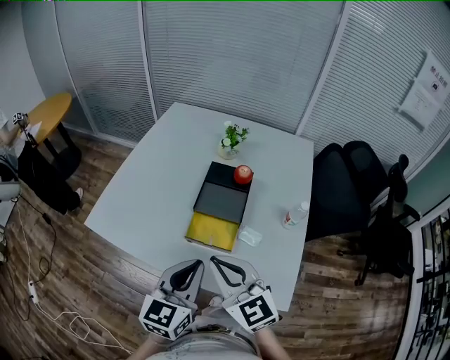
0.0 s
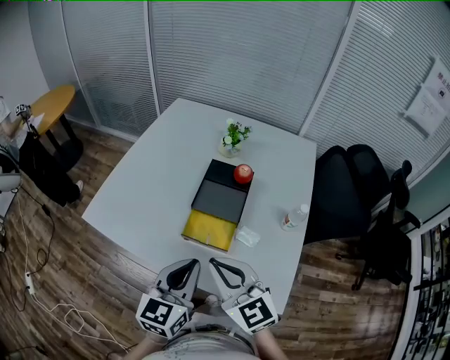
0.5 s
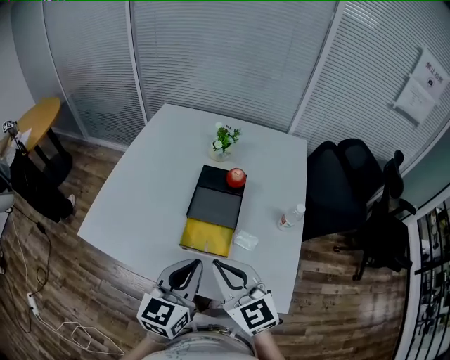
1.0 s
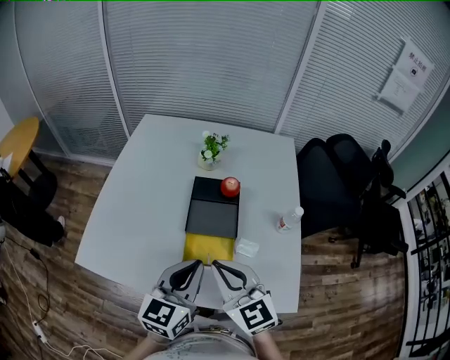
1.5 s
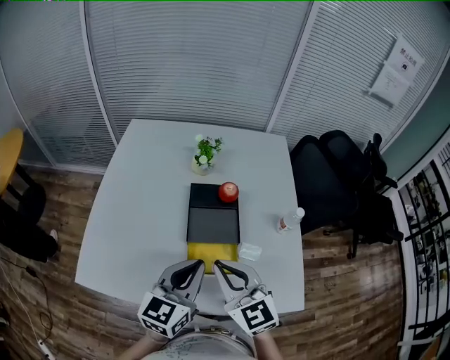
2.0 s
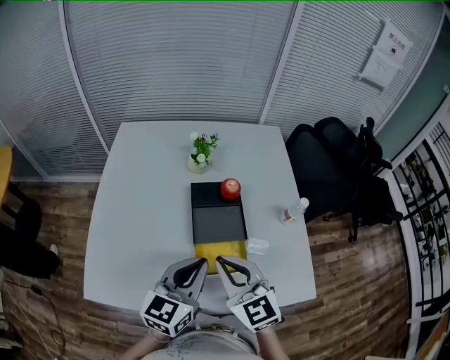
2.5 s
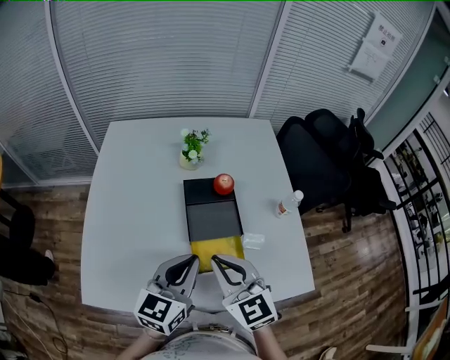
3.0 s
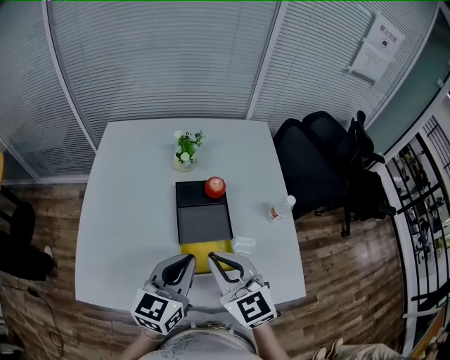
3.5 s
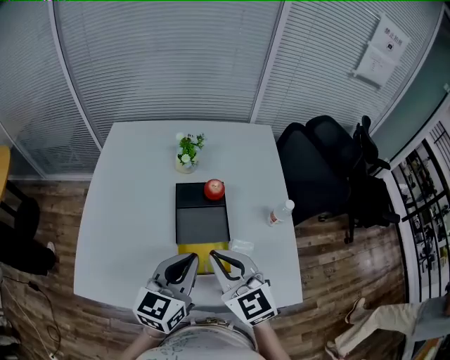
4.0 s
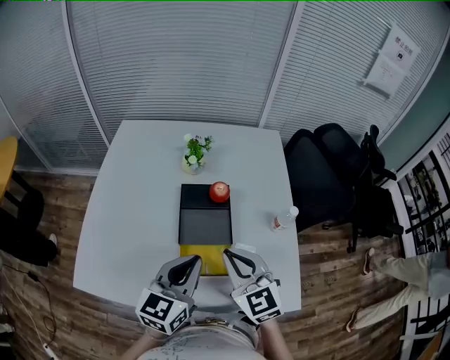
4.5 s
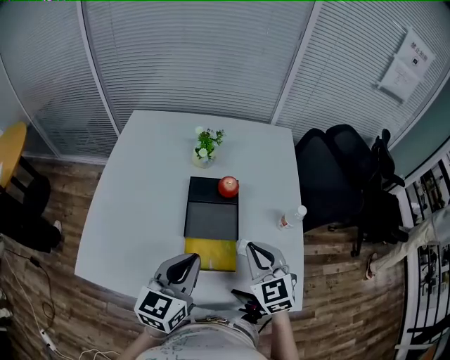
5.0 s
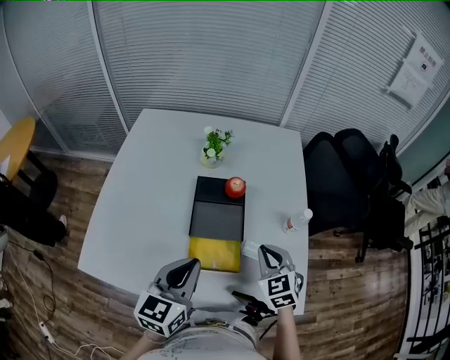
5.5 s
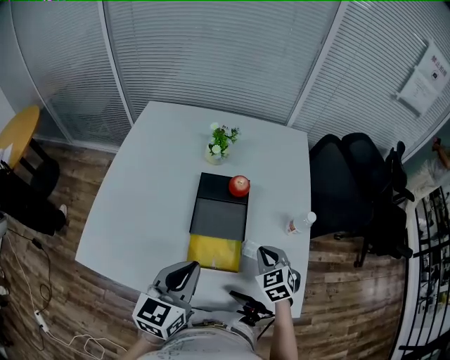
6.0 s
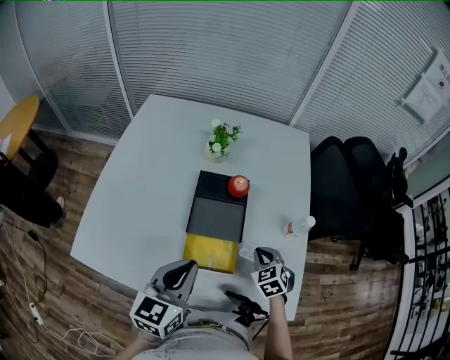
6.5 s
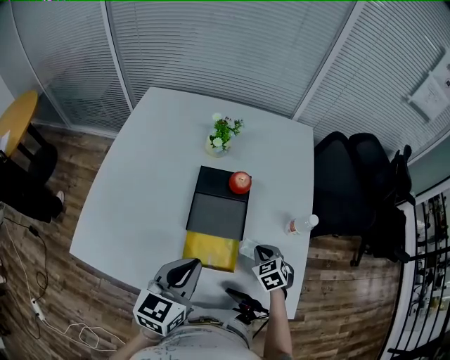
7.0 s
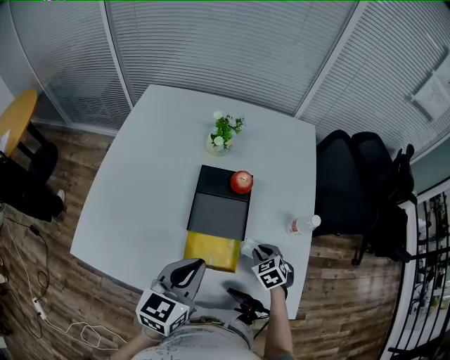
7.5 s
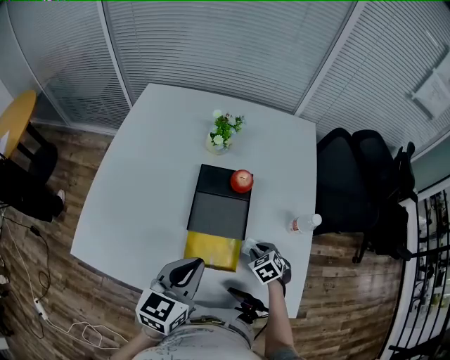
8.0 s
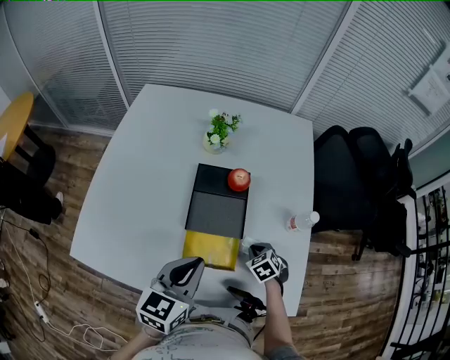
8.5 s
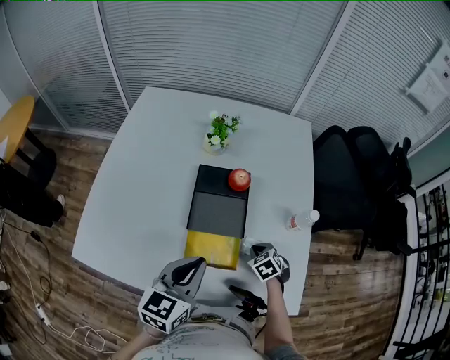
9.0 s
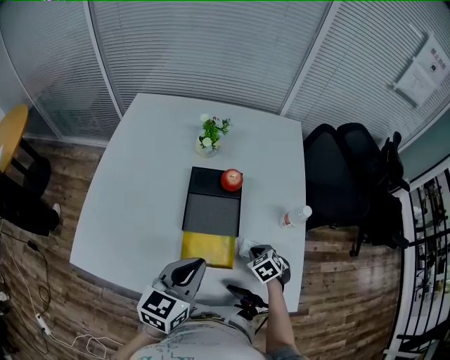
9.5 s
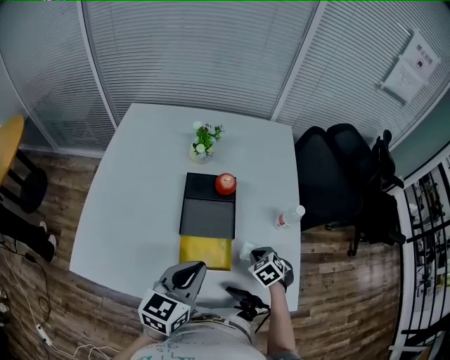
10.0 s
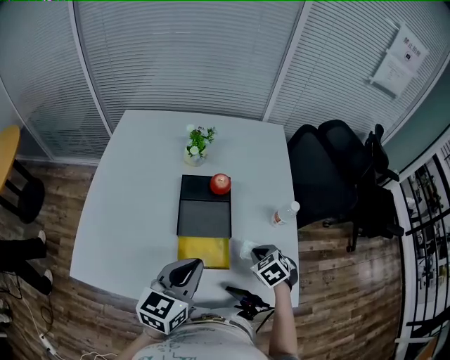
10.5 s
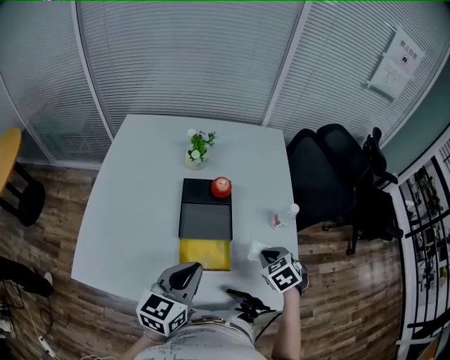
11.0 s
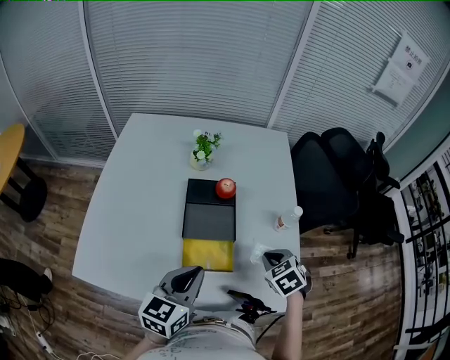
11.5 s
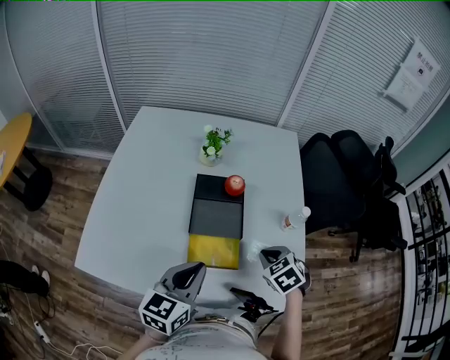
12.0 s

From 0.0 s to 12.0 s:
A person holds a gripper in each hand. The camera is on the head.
From 0.0 s to 2.0 s: Both grippers move forward, roughly 15 cm.
From 2.0 s to 4.0 s: There are only small adjustments of the grippers.
From 4.0 s to 6.0 s: The right gripper heads downward and to the right, covering approximately 20 cm, and changes its angle by about 30 degrees.
From 6.0 s to 8.0 s: The left gripper changes place by roughly 5 cm, while the right gripper moves downward, approximately 15 cm, turns by roughly 20 degrees, and opens up.
From 8.0 s to 10.0 s: The right gripper goes some 5 cm upward, and closes up.
From 10.0 s to 12.0 s: The right gripper heads upward, covering about 10 cm.

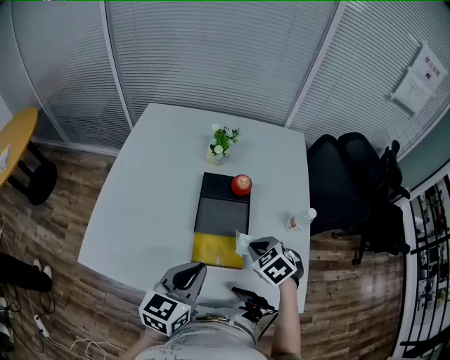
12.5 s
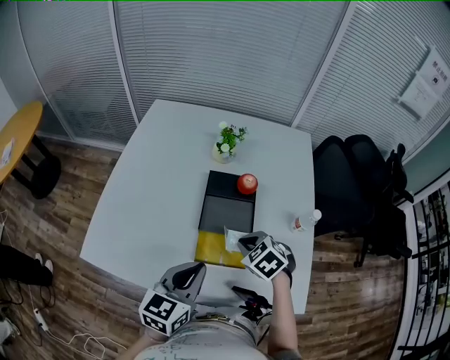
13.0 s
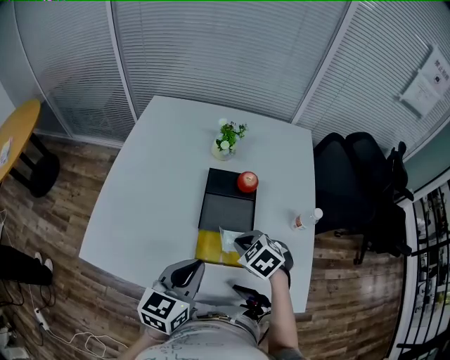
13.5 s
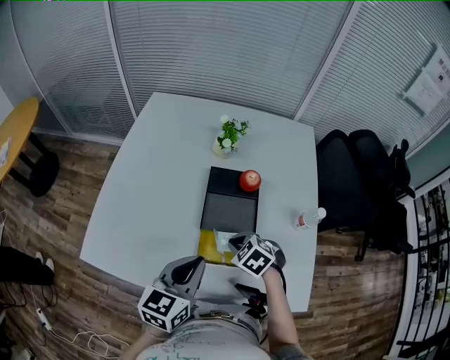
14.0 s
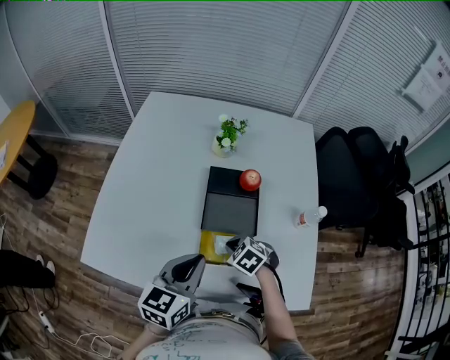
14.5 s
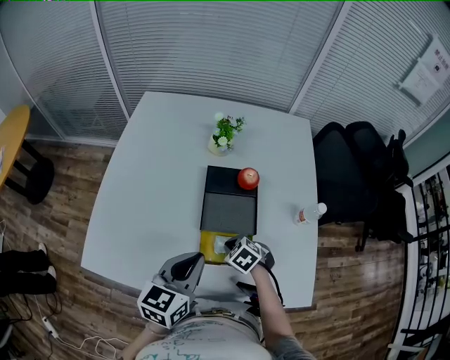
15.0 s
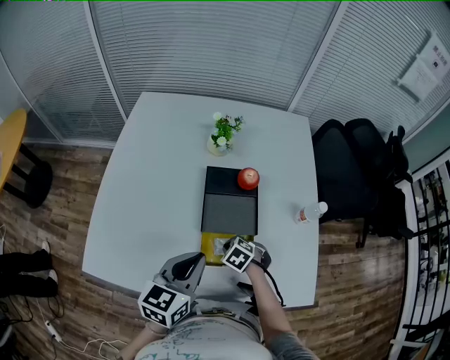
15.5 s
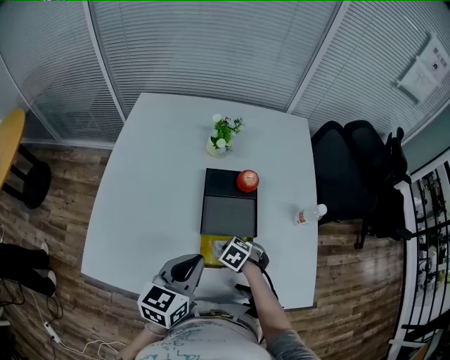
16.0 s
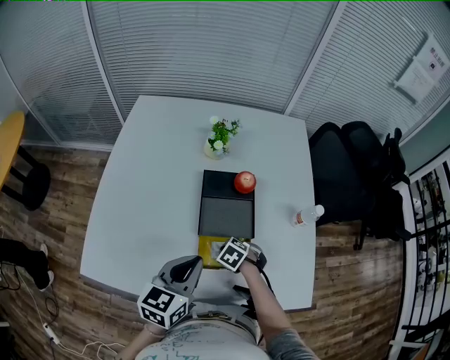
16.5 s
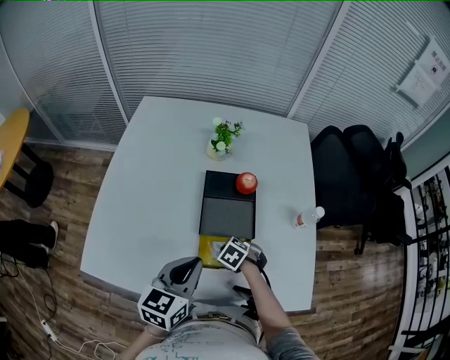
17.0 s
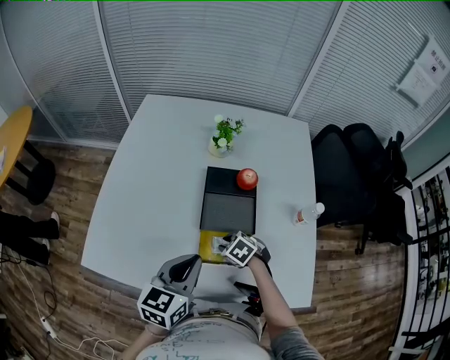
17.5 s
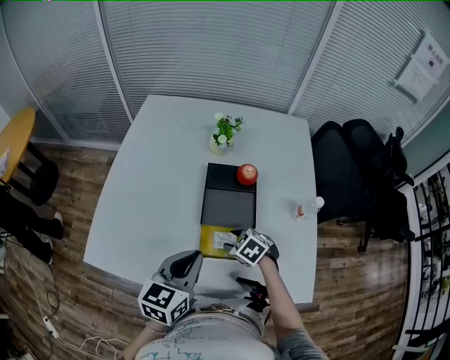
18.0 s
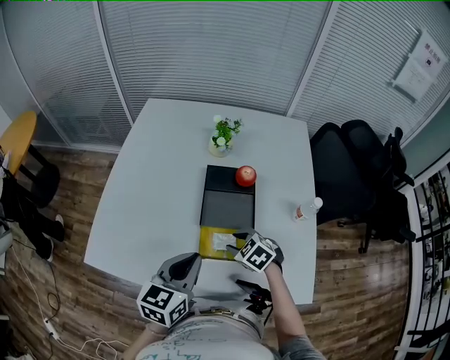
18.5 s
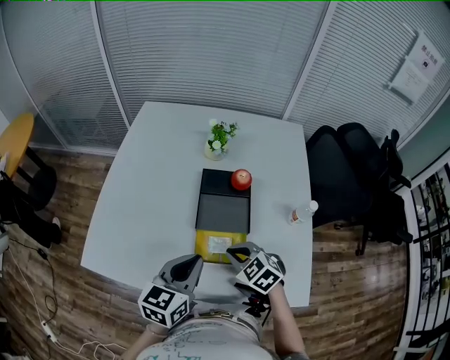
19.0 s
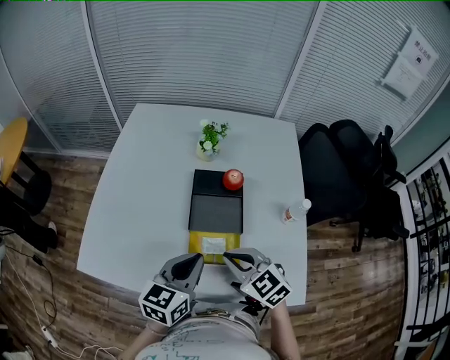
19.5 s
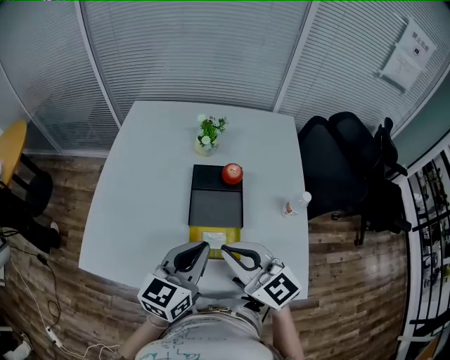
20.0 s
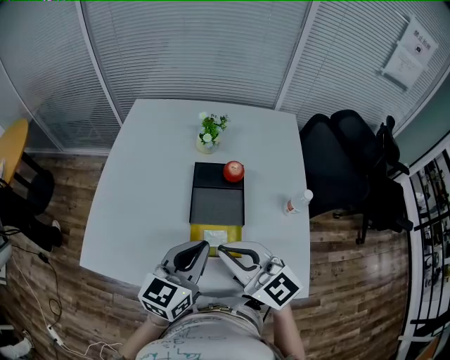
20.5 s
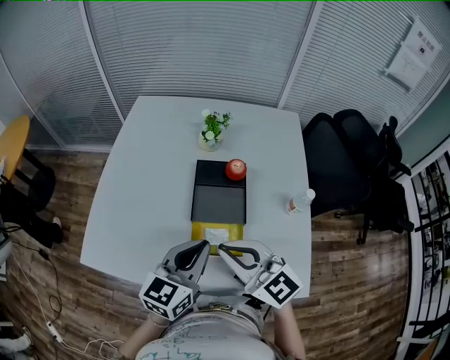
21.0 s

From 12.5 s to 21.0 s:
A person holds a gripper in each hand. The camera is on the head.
From 12.5 s to 14.5 s: The right gripper is displaced downward and to the left by some 15 cm. Meanwhile the left gripper ends up approximately 5 cm from where it was.
From 14.5 s to 16.5 s: The right gripper moves downward, about 5 cm.
From 16.5 s to 19.0 s: The right gripper moves upward, roughly 15 cm, turns by approximately 30 degrees, and opens and closes again.
From 19.0 s to 21.0 s: The right gripper moves upward, some 15 cm, and angles its fingers upward, by some 40 degrees, while the left gripper changes place by about 5 cm.

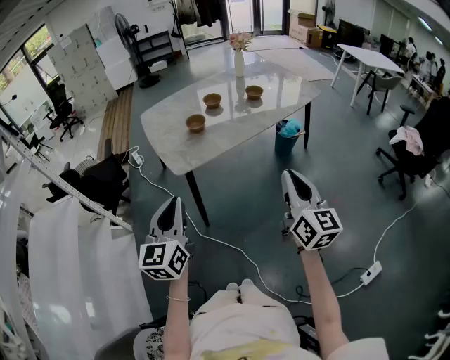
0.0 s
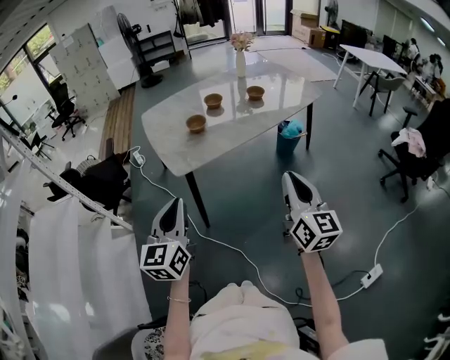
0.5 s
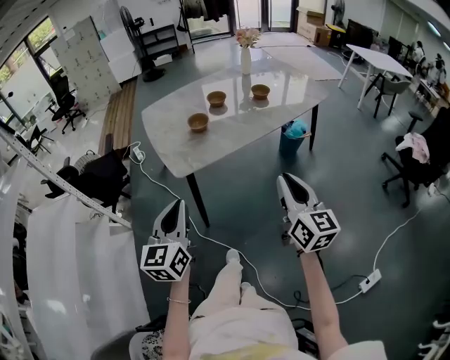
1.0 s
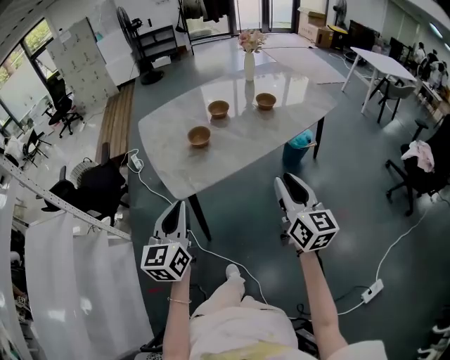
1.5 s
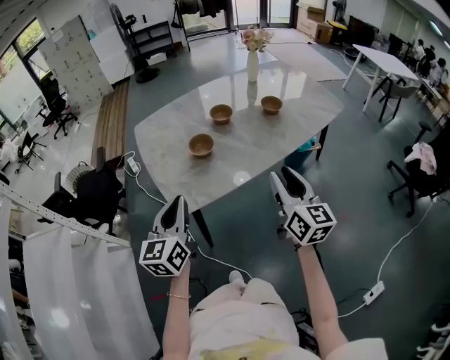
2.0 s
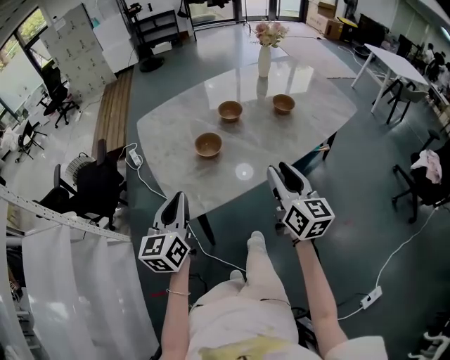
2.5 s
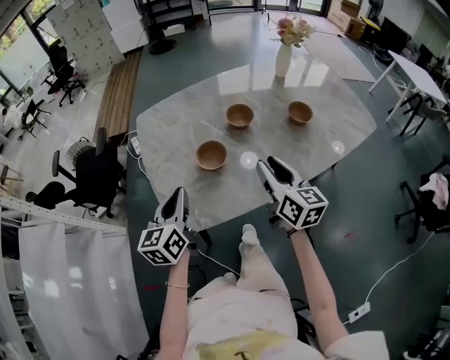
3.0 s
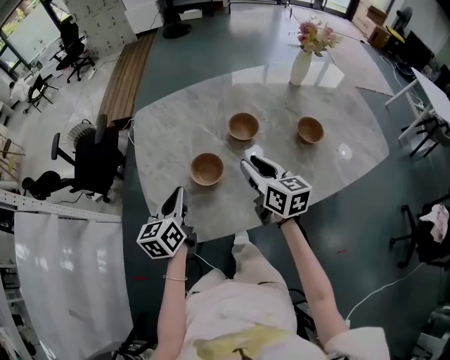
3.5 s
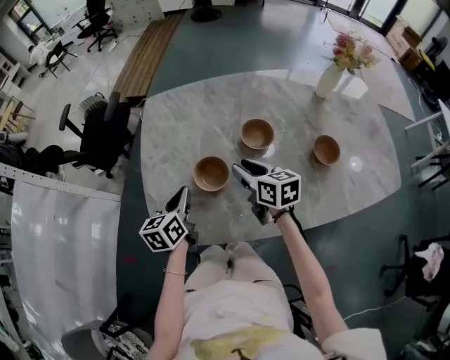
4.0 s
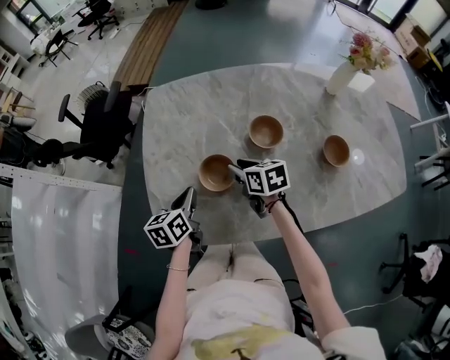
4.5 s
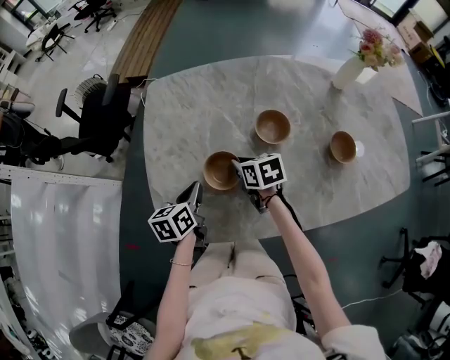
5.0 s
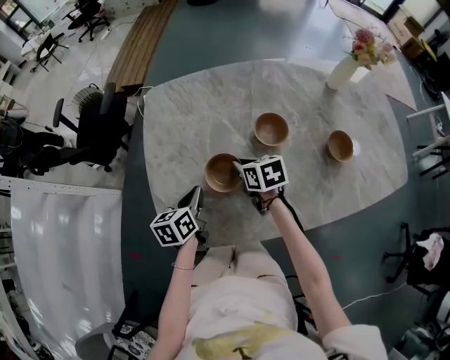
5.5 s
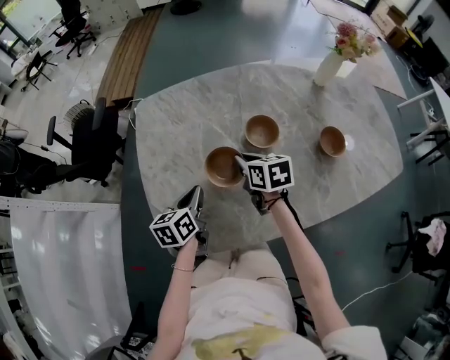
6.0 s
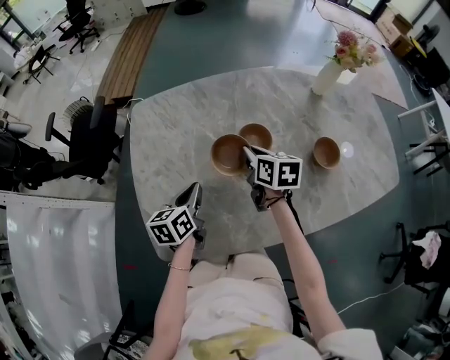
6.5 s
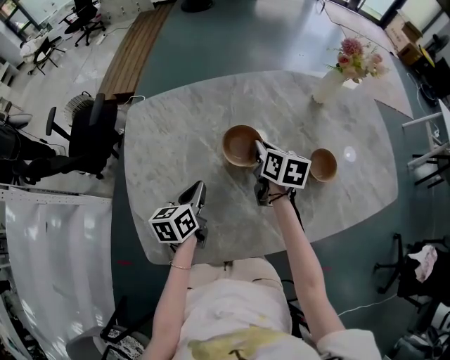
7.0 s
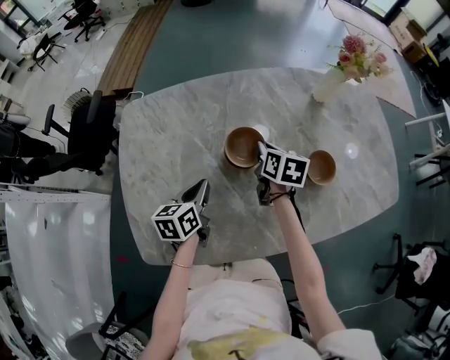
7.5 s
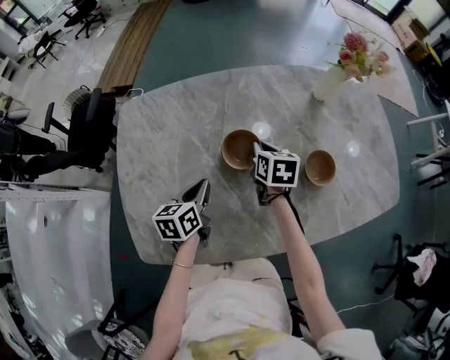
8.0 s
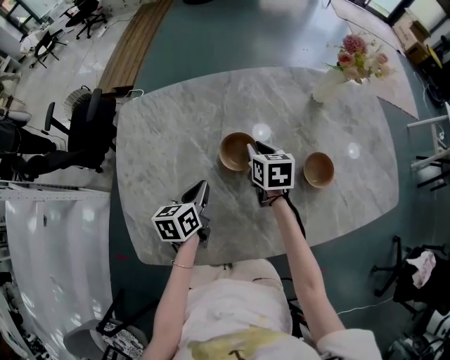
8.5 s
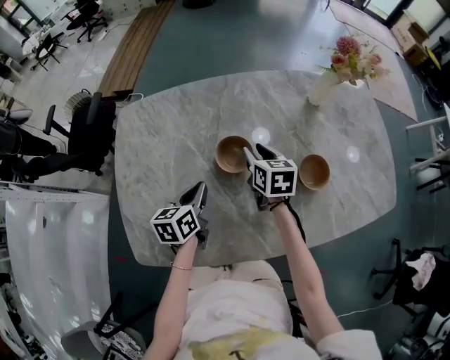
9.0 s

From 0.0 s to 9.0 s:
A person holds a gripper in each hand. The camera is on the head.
From 0.0 s to 2.0 s: The two grippers go some 25 cm forward. The right gripper opens.
From 2.0 s to 4.5 s: The right gripper shifts by about 50 cm, and points its fingers about 40 degrees further downward, while the left gripper moves approximately 35 cm, and swivels about 40 degrees.
From 4.5 s to 7.0 s: The grippers both shift to the right and forward by roughly 15 cm. The right gripper turns by about 30 degrees, and closes.
From 7.0 s to 9.0 s: The right gripper opens up; the left gripper changes place by about 5 cm.
